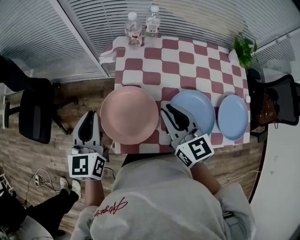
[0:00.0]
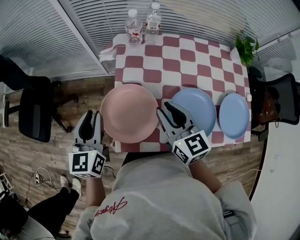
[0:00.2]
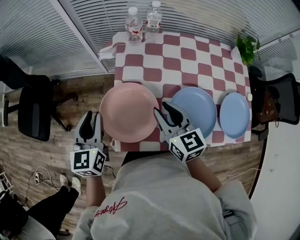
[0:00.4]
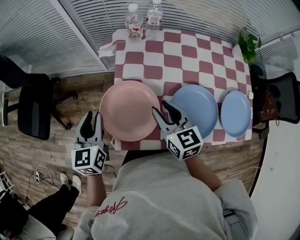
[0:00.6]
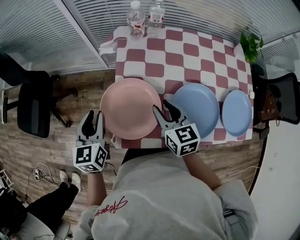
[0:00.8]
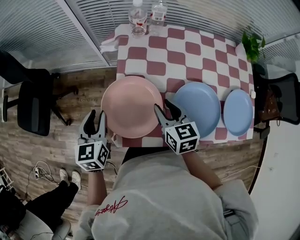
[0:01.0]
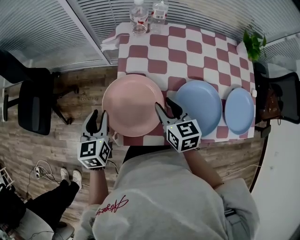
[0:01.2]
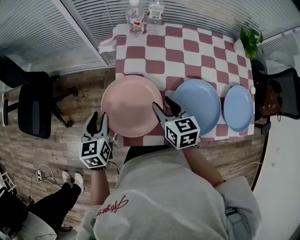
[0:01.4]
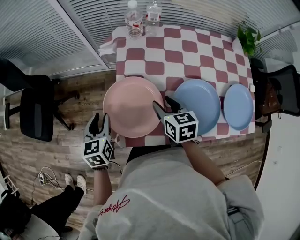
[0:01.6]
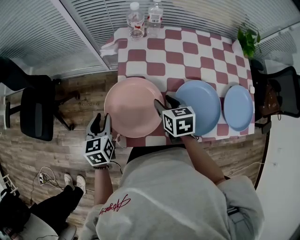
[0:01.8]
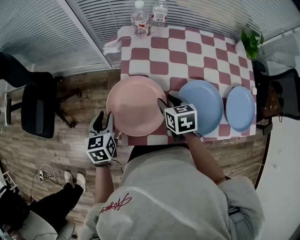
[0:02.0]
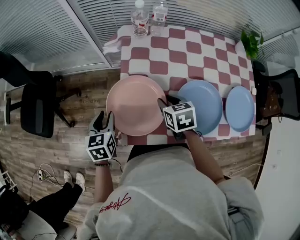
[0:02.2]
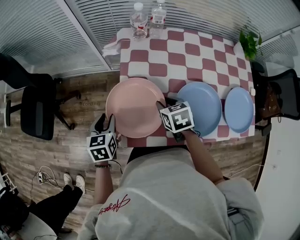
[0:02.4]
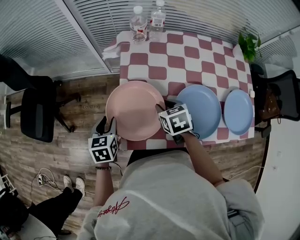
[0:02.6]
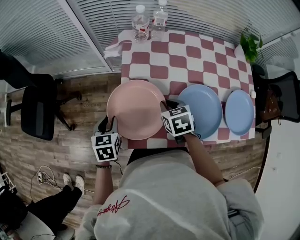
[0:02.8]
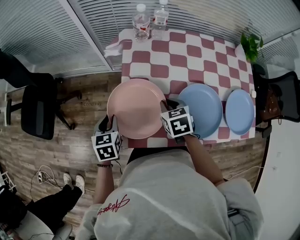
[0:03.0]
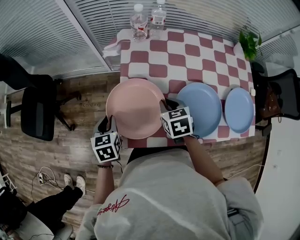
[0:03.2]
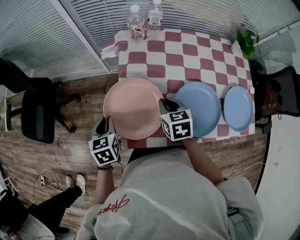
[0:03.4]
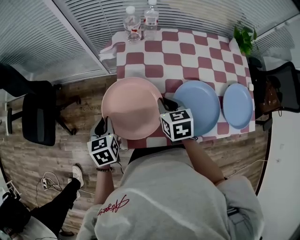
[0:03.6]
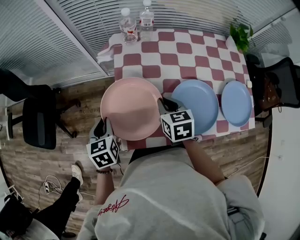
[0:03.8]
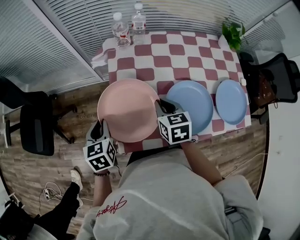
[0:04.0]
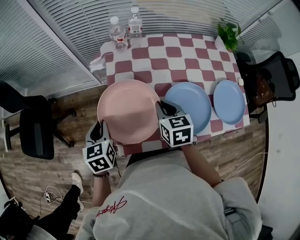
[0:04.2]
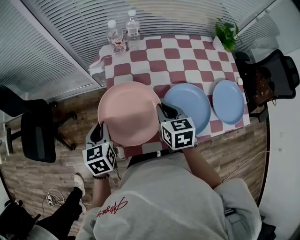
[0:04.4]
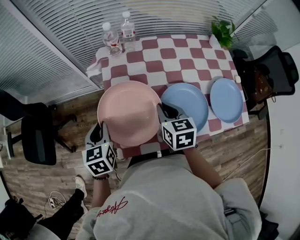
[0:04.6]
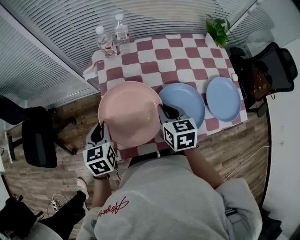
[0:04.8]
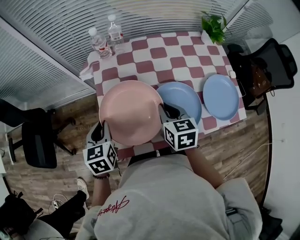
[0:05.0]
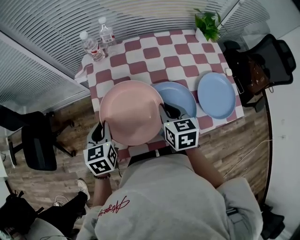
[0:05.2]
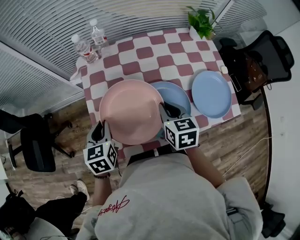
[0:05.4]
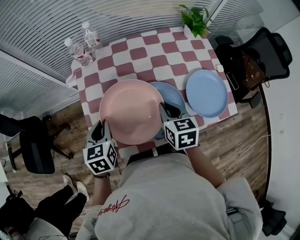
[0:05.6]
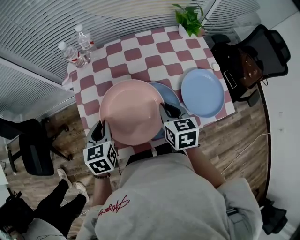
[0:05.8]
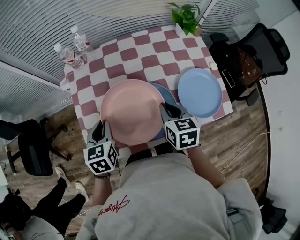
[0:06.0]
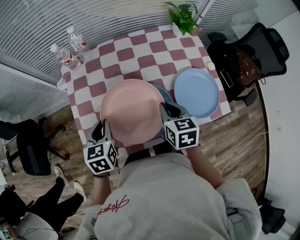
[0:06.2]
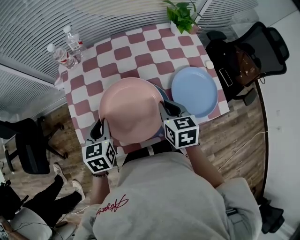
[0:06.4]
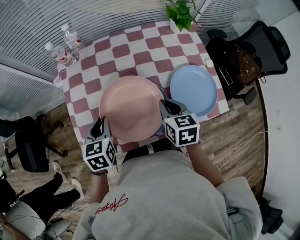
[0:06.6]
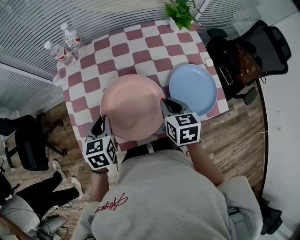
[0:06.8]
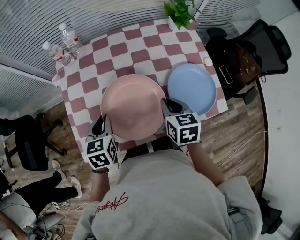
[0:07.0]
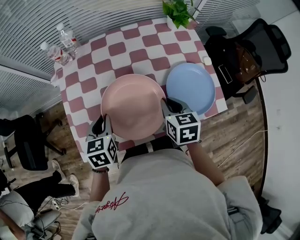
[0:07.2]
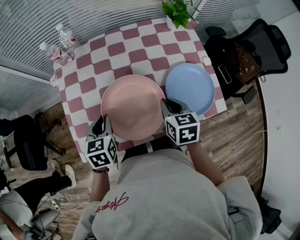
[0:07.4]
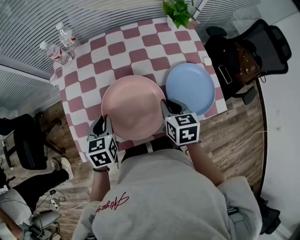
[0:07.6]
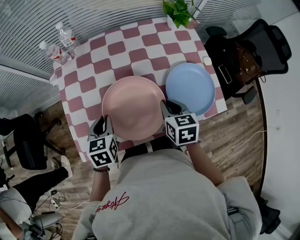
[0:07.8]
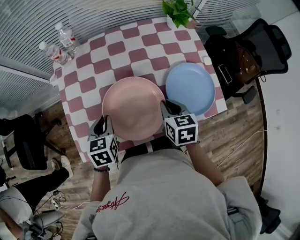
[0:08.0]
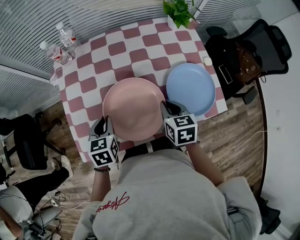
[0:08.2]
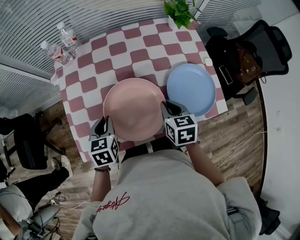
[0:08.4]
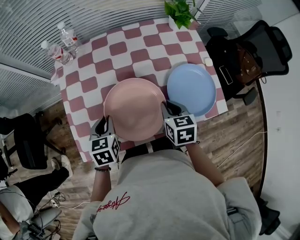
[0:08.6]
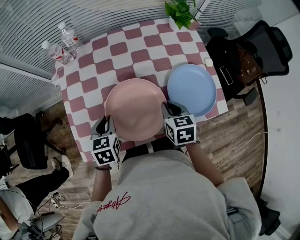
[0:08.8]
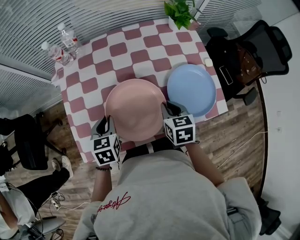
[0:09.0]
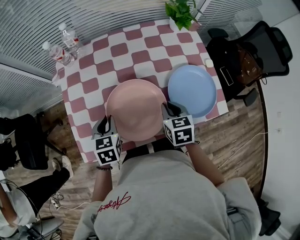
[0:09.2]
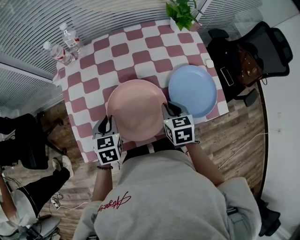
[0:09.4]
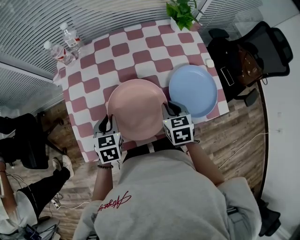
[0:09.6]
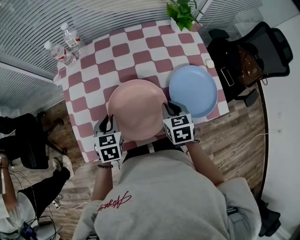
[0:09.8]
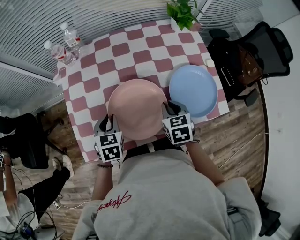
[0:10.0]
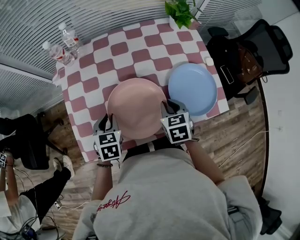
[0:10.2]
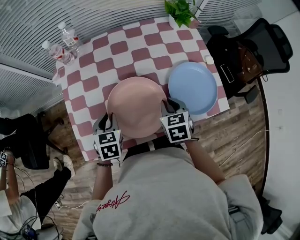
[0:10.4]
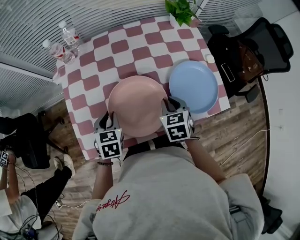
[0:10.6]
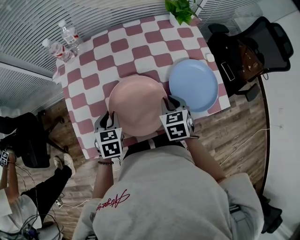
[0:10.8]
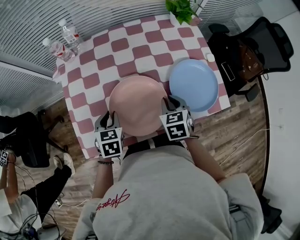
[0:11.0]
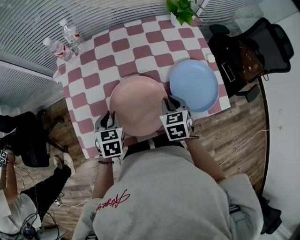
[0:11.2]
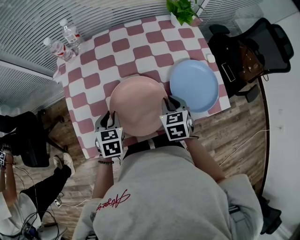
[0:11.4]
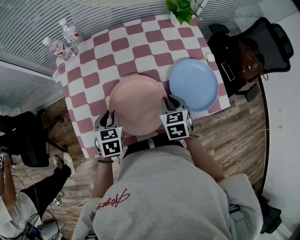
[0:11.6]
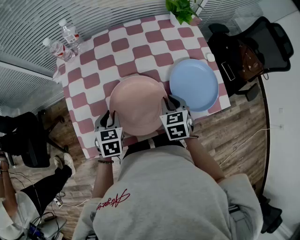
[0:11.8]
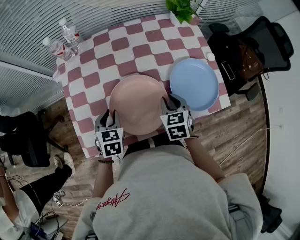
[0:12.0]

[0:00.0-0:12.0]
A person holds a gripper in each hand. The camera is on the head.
0:00.0 to 0:01.6: Both grippers travel together downward, approximately 15 cm. The right gripper turns by roughly 30 degrees, and opens; the left gripper turns by about 20 degrees, and opens its fingers.
0:01.6 to 0:03.0: The right gripper closes its fingers.
0:03.0 to 0:04.4: The two grippers go approximately 5 cm upward. The right gripper changes its angle by some 20 degrees.
0:04.4 to 0:06.0: Both grippers travel together to the right, about 20 cm.
0:06.0 to 0:07.6: The grippers both shift to the right by some 5 cm.
0:07.6 to 0:10.4: The grippers move only a little.
0:10.4 to 0:12.0: Both grippers stay put.

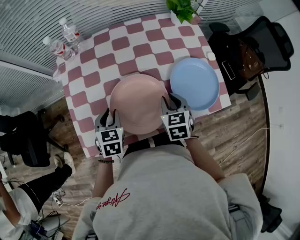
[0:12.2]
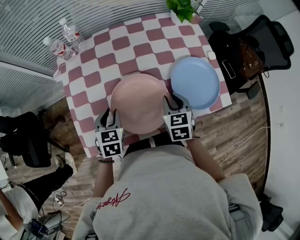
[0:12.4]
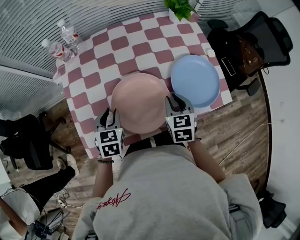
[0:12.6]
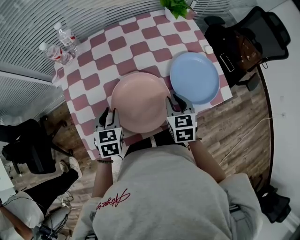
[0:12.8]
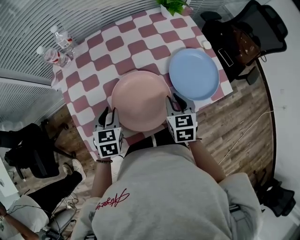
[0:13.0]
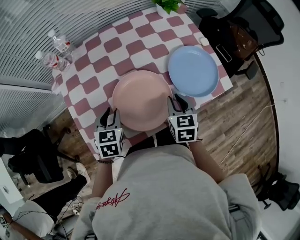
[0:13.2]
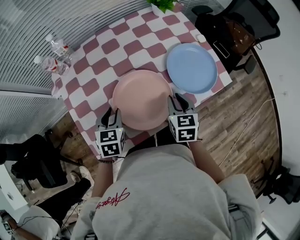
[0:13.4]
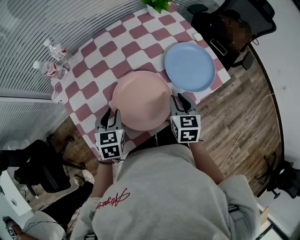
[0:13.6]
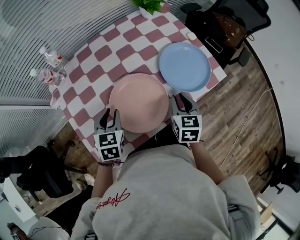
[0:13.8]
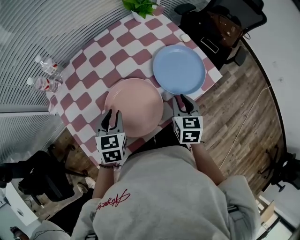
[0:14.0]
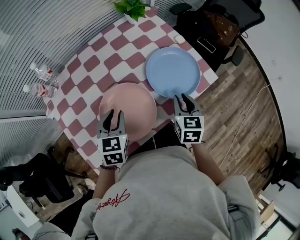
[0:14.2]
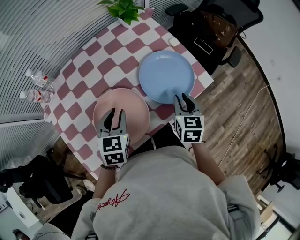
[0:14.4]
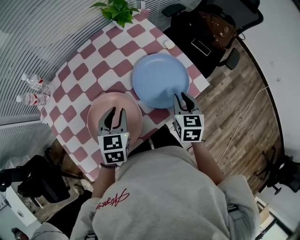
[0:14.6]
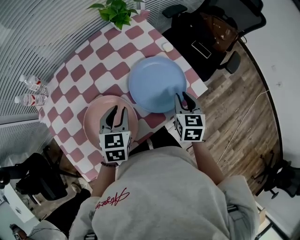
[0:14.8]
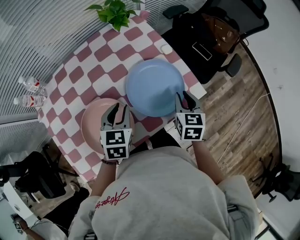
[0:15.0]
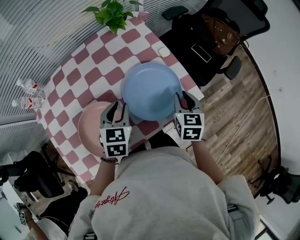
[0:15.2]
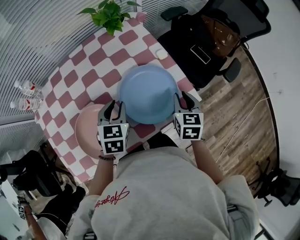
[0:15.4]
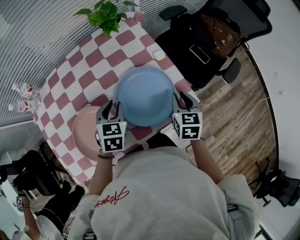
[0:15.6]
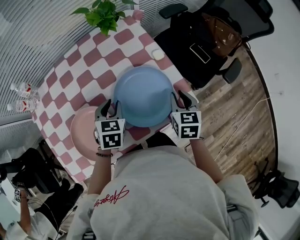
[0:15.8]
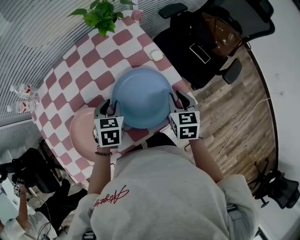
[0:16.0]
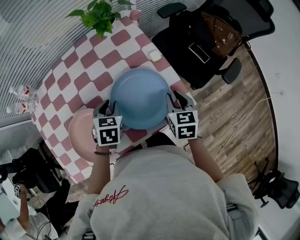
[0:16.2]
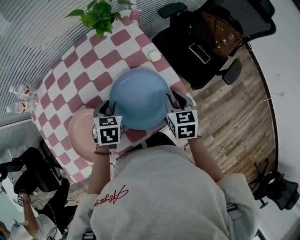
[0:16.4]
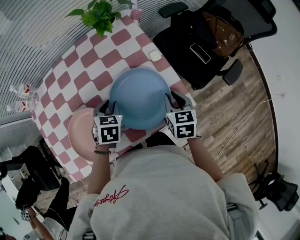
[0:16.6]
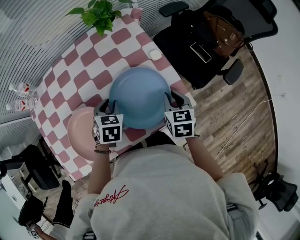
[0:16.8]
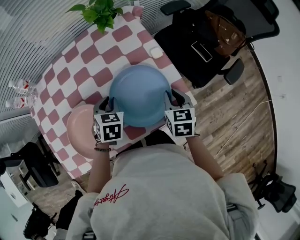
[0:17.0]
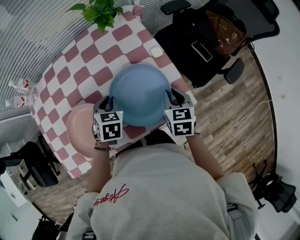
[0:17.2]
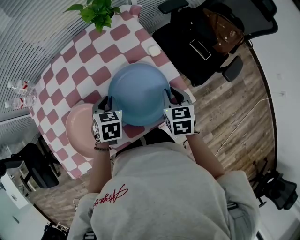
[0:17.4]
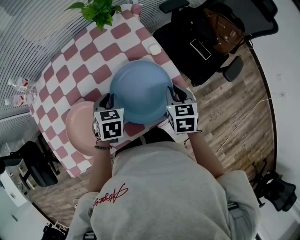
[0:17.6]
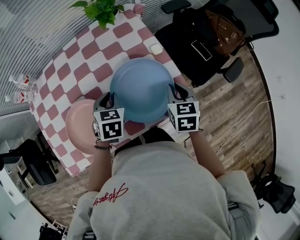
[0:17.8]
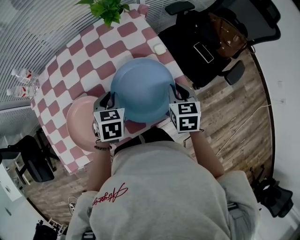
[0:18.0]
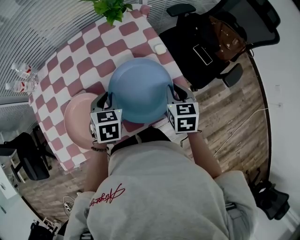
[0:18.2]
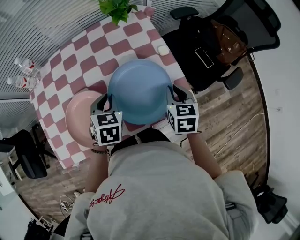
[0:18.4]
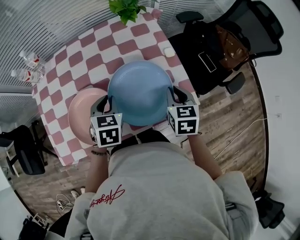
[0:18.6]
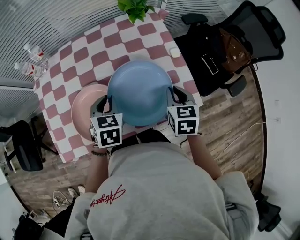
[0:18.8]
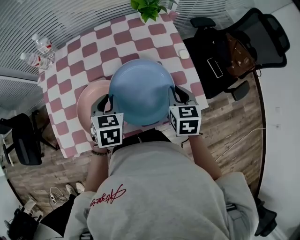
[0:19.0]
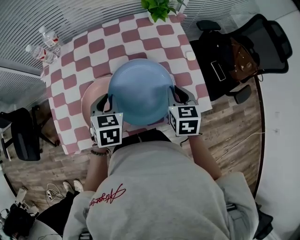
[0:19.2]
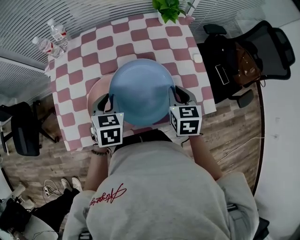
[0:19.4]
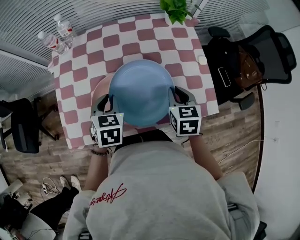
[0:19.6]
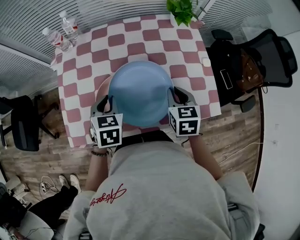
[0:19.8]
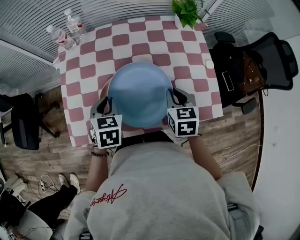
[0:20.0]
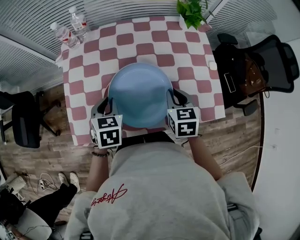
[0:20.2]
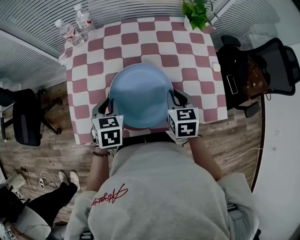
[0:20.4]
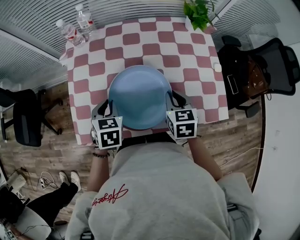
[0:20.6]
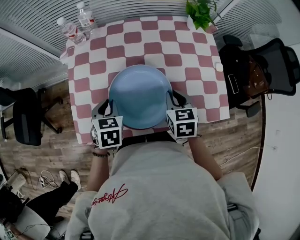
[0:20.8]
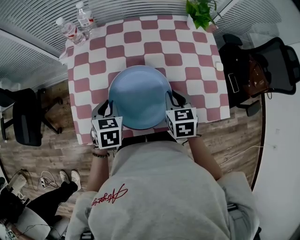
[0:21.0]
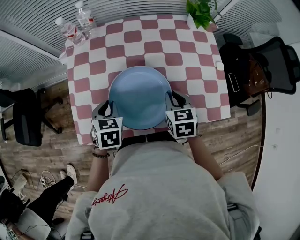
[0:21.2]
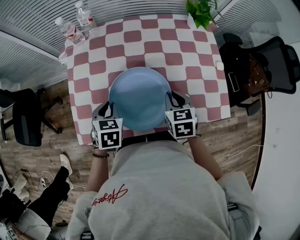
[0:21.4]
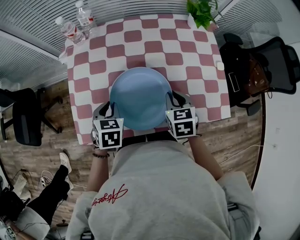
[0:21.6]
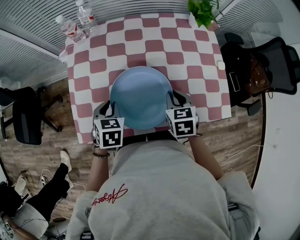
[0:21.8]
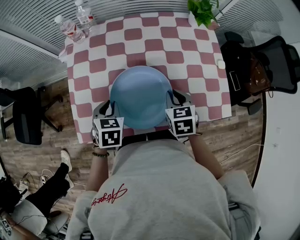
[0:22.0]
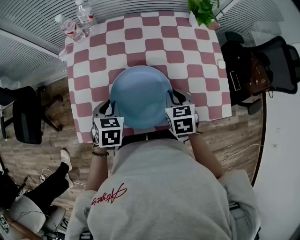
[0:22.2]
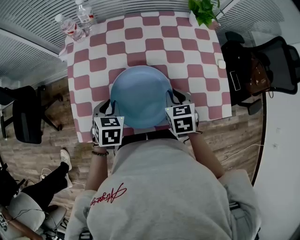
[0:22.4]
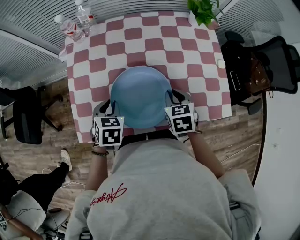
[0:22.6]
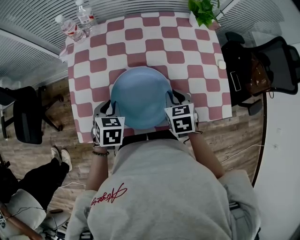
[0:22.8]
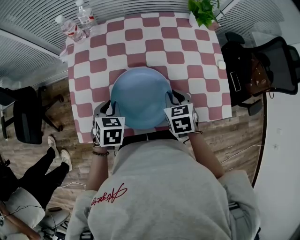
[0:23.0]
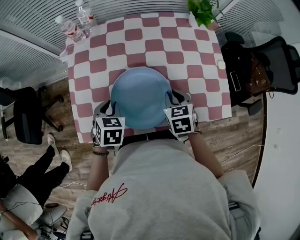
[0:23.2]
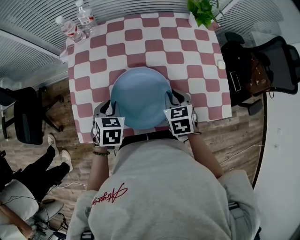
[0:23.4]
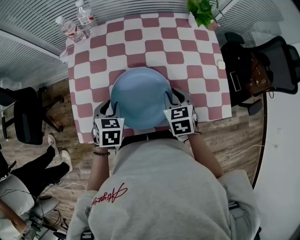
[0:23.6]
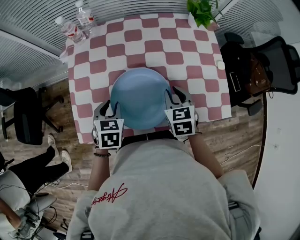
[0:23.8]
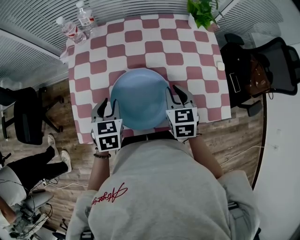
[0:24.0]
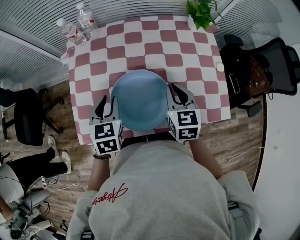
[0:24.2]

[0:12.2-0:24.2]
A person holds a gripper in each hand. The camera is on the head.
0:12.2 to 0:13.8: The right gripper goes roughly 5 cm backward and to the right, and changes its angle by roughly 30 degrees.
0:13.8 to 0:15.2: The grippers both shift to the right and forward by about 25 cm.
0:15.2 to 0:16.6: The right gripper ends up some 5 cm from where it was; the left gripper goes approximately 5 cm downward.
0:16.6 to 0:18.2: There are only small adjustments of the grippers.
0:18.2 to 0:19.8: The grippers both shift to the left by about 20 cm.
0:19.8 to 0:21.2: Both grippers travel together to the left, approximately 10 cm.
0:21.2 to 0:22.6: The grippers make only small movements.
0:22.6 to 0:24.2: The two grippers go about 5 cm upward.
